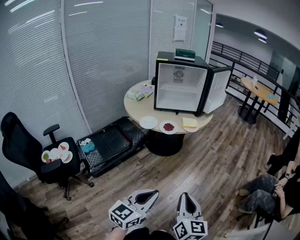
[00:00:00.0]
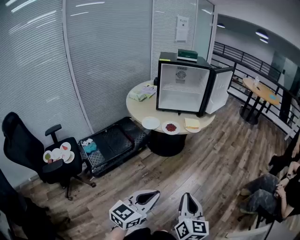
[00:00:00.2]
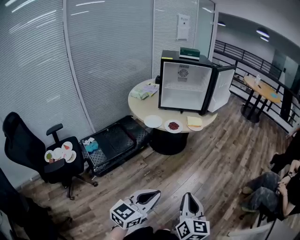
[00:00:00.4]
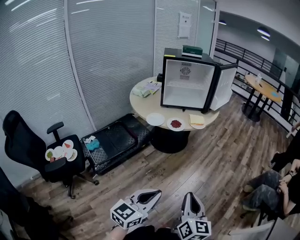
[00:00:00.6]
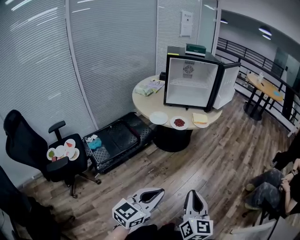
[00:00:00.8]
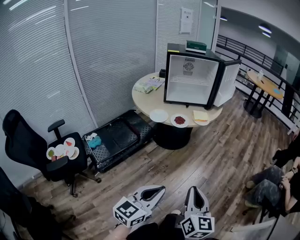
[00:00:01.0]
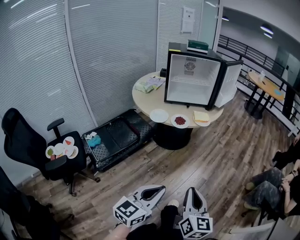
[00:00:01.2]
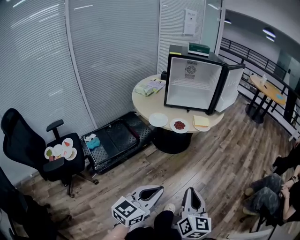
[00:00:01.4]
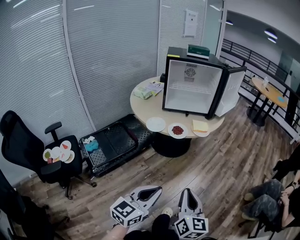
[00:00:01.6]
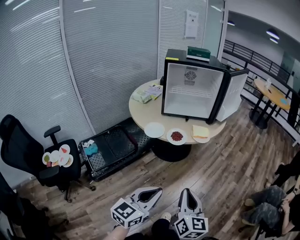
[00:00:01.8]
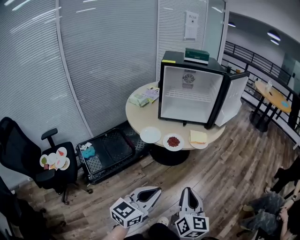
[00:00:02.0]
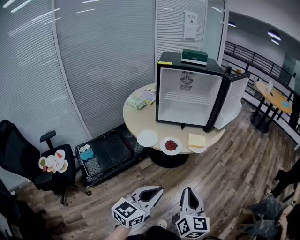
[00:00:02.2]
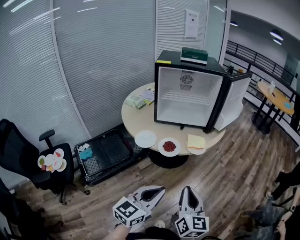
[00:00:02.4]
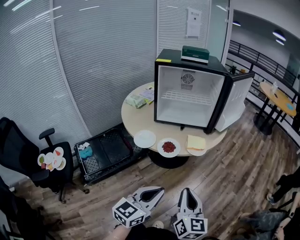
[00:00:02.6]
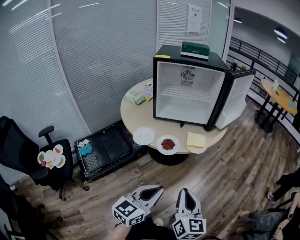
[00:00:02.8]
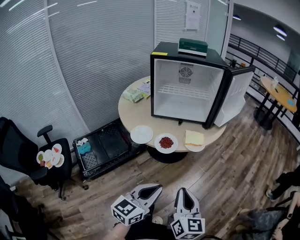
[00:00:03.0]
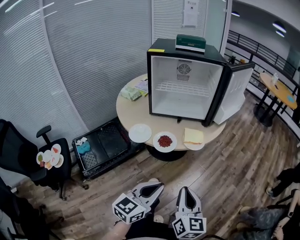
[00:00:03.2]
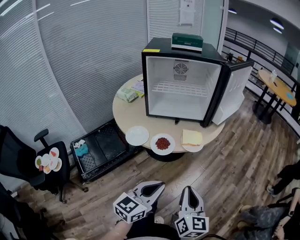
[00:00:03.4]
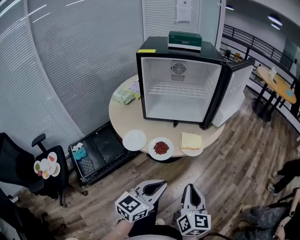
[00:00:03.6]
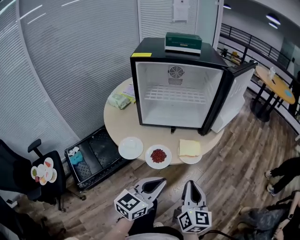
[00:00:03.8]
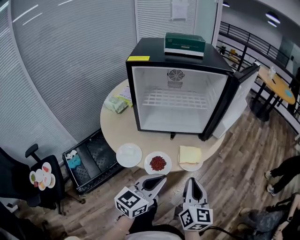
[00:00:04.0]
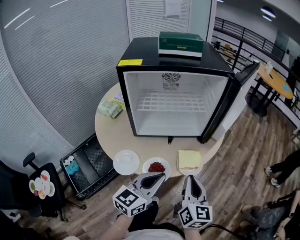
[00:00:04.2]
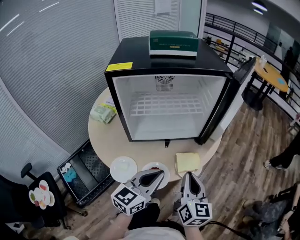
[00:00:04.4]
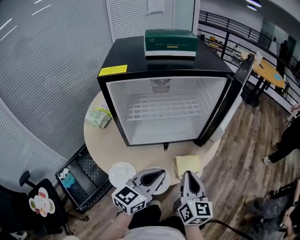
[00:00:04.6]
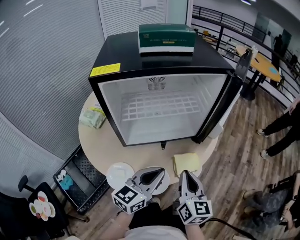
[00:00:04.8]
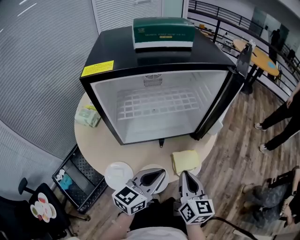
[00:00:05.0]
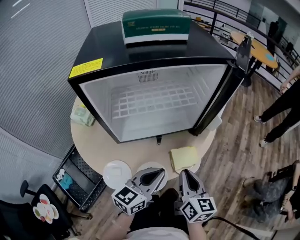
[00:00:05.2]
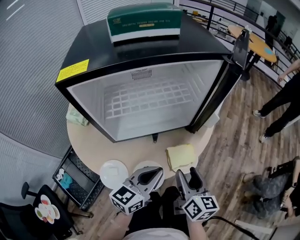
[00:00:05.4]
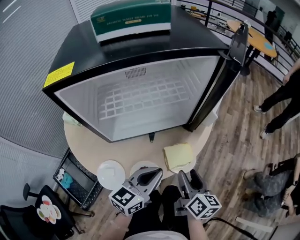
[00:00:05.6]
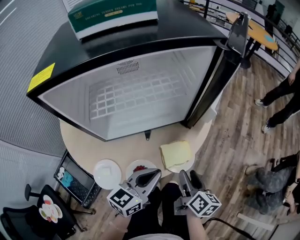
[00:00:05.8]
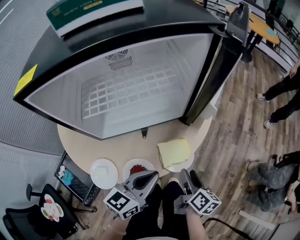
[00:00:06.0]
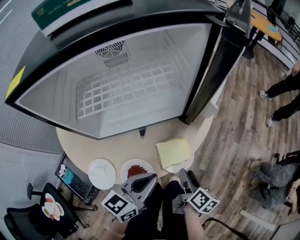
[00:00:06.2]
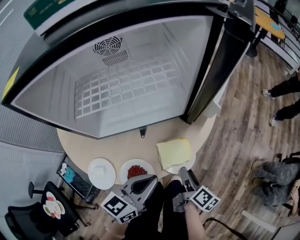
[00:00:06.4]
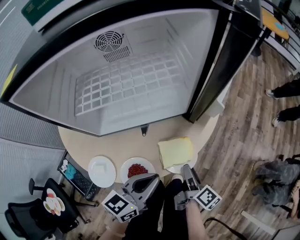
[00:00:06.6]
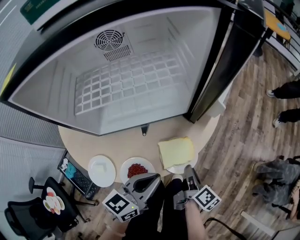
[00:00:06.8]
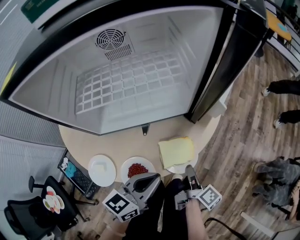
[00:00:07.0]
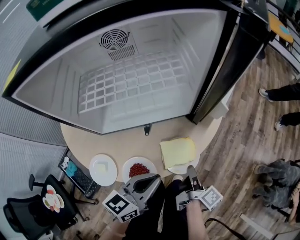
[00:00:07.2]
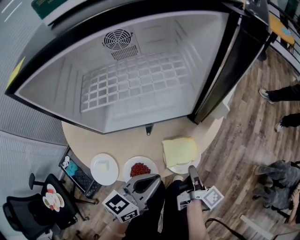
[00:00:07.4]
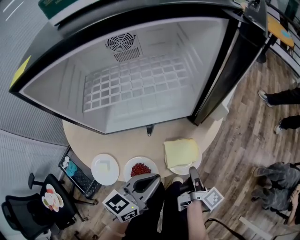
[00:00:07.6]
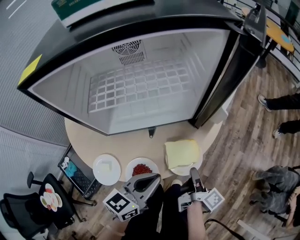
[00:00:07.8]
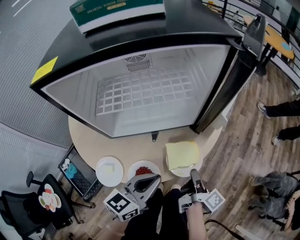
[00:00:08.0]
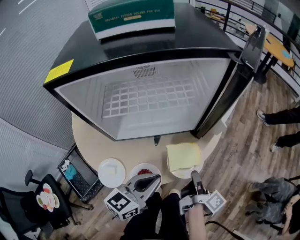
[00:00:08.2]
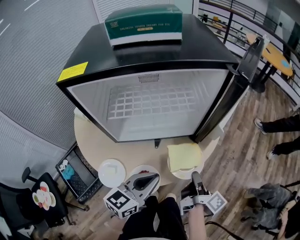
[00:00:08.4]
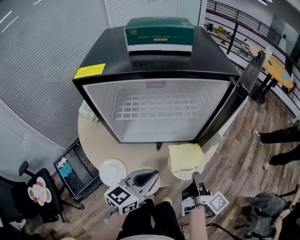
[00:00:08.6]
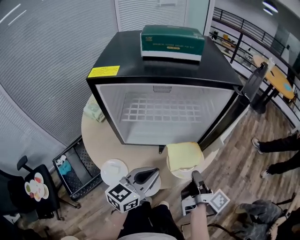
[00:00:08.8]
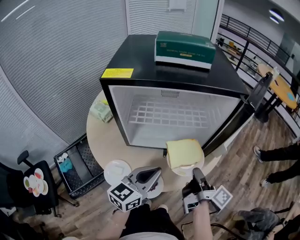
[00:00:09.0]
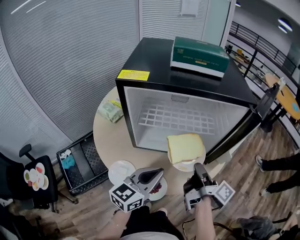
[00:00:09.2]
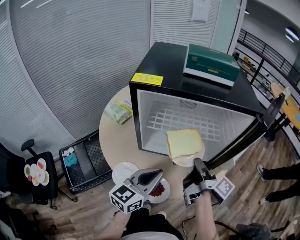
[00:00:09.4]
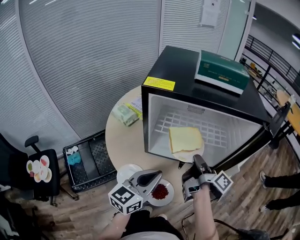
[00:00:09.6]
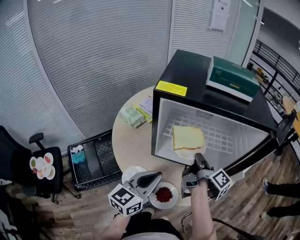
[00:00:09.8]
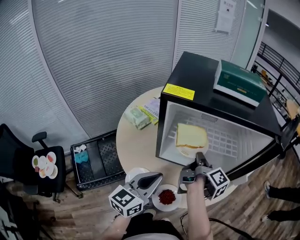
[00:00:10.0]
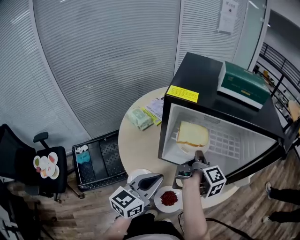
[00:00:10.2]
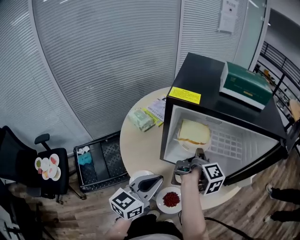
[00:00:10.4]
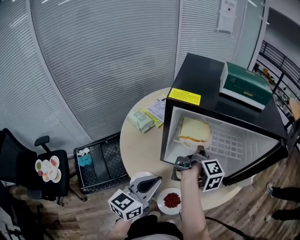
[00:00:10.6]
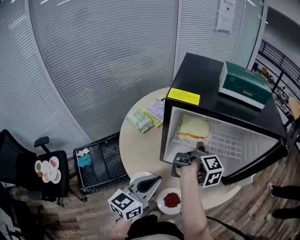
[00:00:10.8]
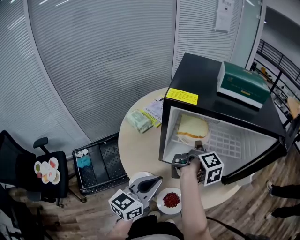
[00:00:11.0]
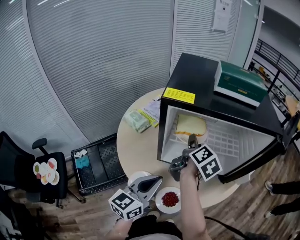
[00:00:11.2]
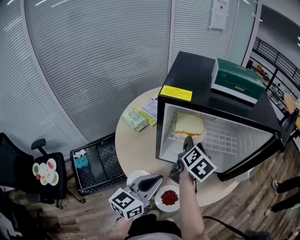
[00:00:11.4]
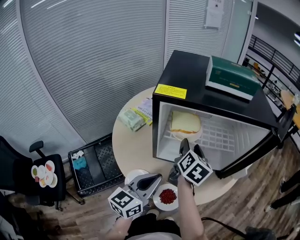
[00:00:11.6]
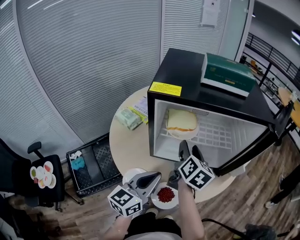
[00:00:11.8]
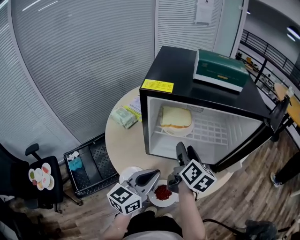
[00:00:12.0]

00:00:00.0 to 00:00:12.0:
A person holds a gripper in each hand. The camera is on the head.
00:00:00.0 to 00:00:01.6: The grippers both shift forward and to the left by roughly 10 cm.
00:00:01.6 to 00:00:03.0: Both grippers travel together forward, roughly 20 cm.
00:00:03.0 to 00:00:04.4: The grippers both shift forward by approximately 30 cm.
00:00:04.4 to 00:00:06.0: The right gripper goes about 20 cm downward and to the right, rotates approximately 40 degrees, and opens, while the left gripper heads downward and forward, covering some 10 cm.
00:00:06.0 to 00:00:07.6: The right gripper swivels roughly 40 degrees, and closes its fingers.
00:00:07.6 to 00:00:09.0: The right gripper moves upward, some 20 cm. The left gripper goes roughly 15 cm upward and to the left.
00:00:09.0 to 00:00:10.4: The right gripper travels to the left and forward by some 25 cm, while the left gripper goes roughly 15 cm to the left.
00:00:10.4 to 00:00:12.0: The right gripper rotates around the line of its fingers by approximately 50 degrees, counterclockwise from behind, and opens up.

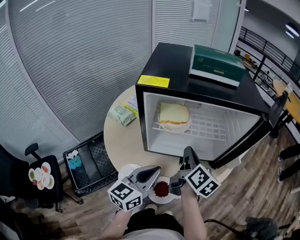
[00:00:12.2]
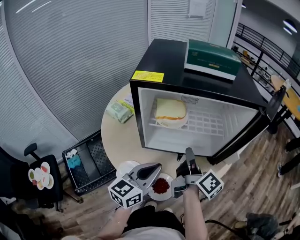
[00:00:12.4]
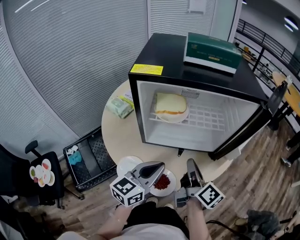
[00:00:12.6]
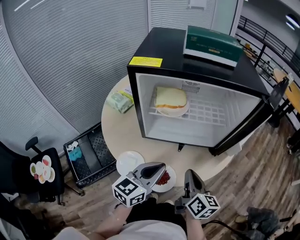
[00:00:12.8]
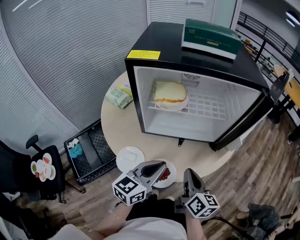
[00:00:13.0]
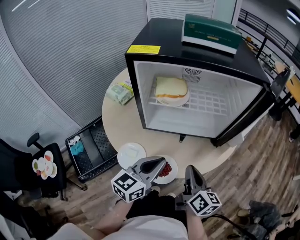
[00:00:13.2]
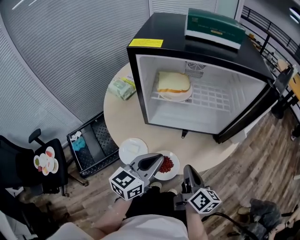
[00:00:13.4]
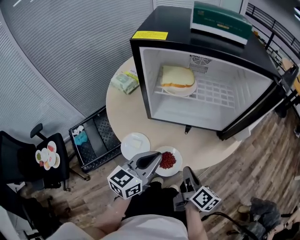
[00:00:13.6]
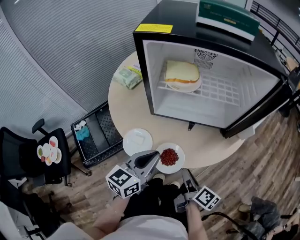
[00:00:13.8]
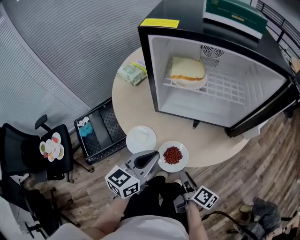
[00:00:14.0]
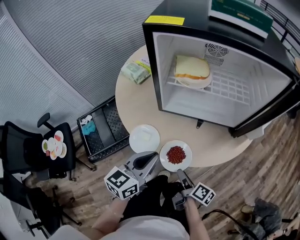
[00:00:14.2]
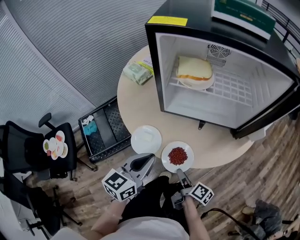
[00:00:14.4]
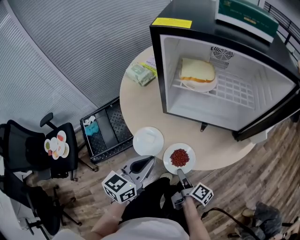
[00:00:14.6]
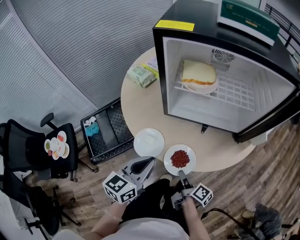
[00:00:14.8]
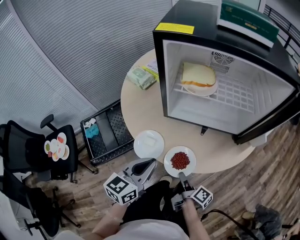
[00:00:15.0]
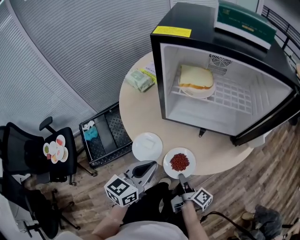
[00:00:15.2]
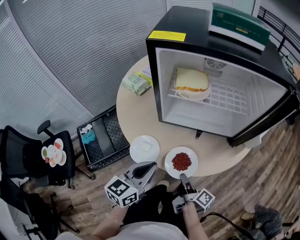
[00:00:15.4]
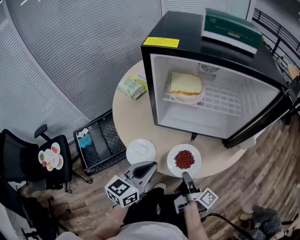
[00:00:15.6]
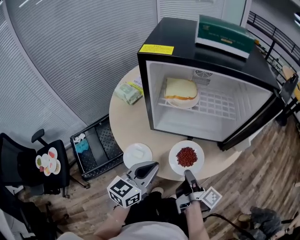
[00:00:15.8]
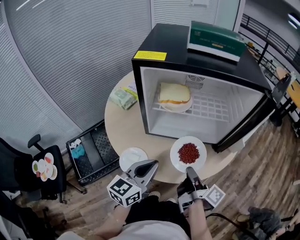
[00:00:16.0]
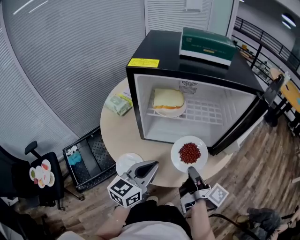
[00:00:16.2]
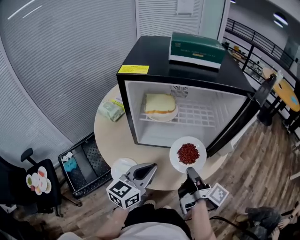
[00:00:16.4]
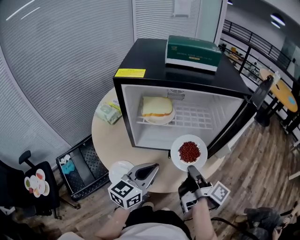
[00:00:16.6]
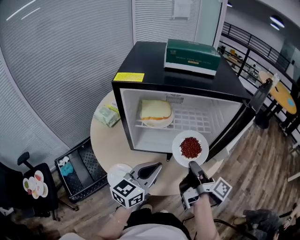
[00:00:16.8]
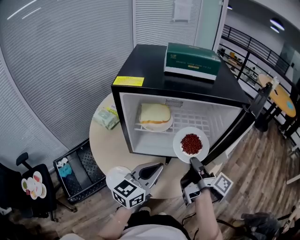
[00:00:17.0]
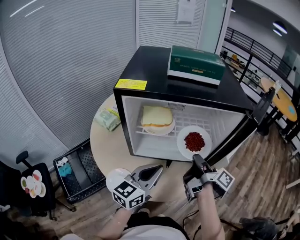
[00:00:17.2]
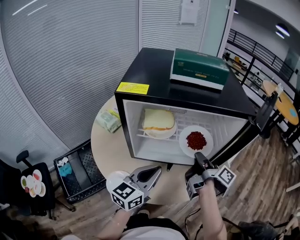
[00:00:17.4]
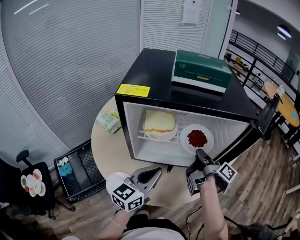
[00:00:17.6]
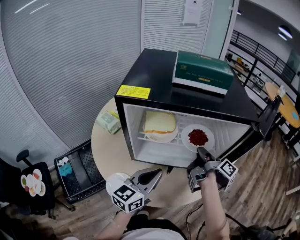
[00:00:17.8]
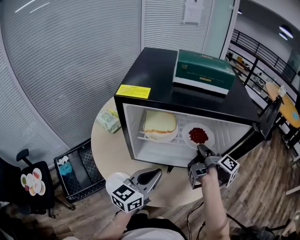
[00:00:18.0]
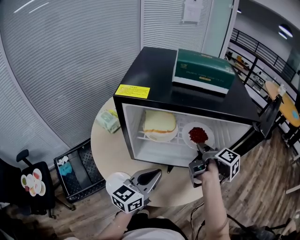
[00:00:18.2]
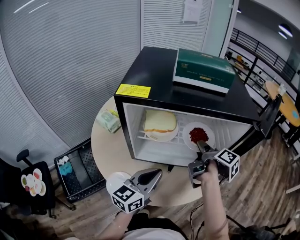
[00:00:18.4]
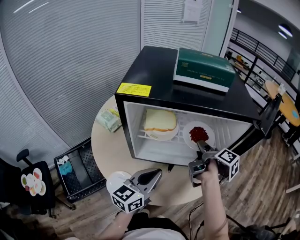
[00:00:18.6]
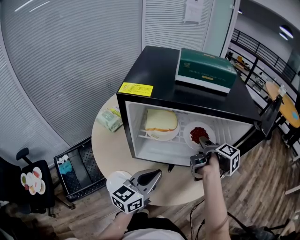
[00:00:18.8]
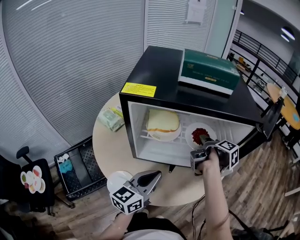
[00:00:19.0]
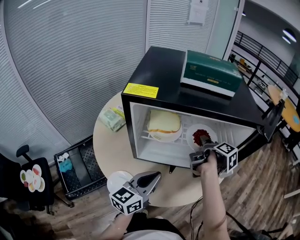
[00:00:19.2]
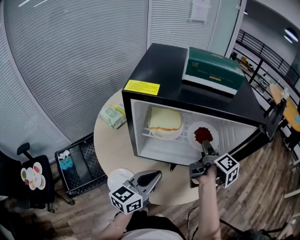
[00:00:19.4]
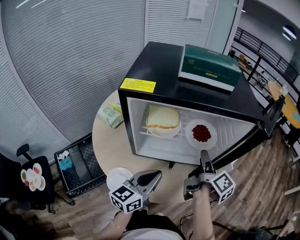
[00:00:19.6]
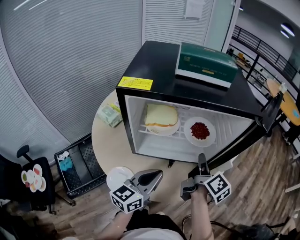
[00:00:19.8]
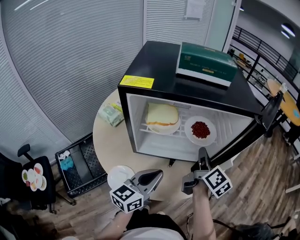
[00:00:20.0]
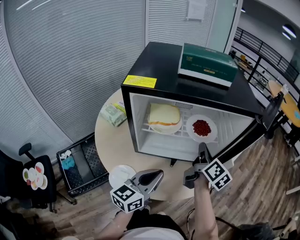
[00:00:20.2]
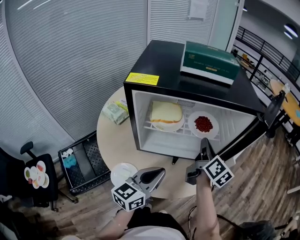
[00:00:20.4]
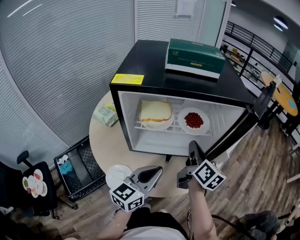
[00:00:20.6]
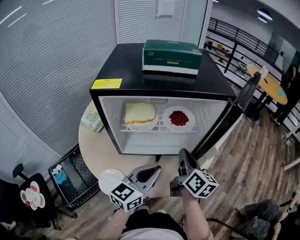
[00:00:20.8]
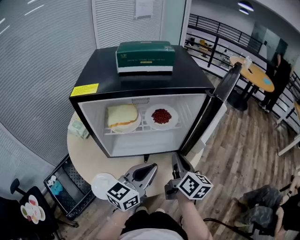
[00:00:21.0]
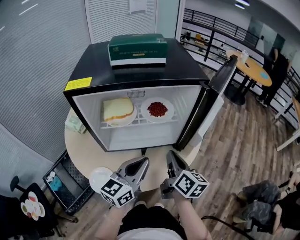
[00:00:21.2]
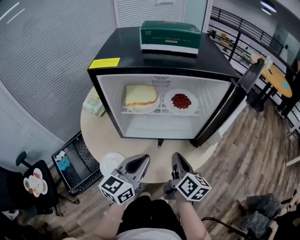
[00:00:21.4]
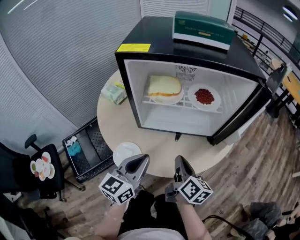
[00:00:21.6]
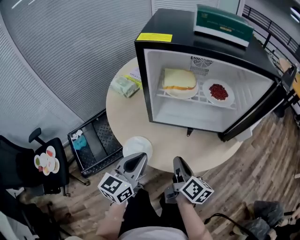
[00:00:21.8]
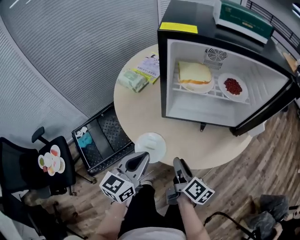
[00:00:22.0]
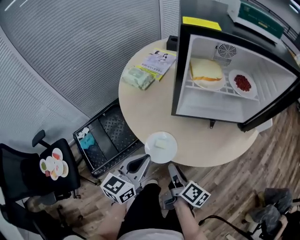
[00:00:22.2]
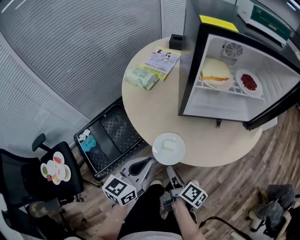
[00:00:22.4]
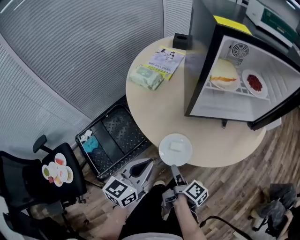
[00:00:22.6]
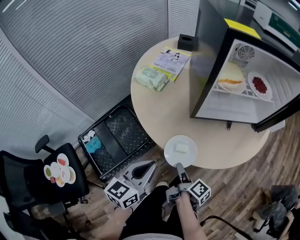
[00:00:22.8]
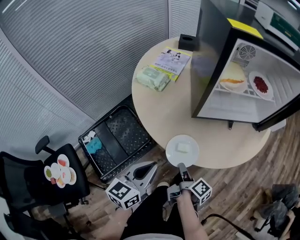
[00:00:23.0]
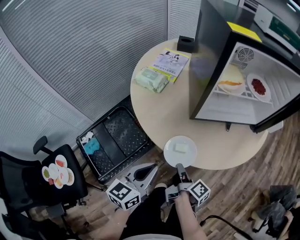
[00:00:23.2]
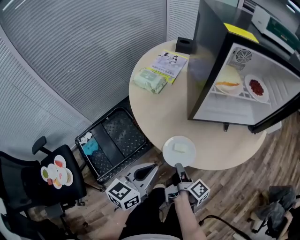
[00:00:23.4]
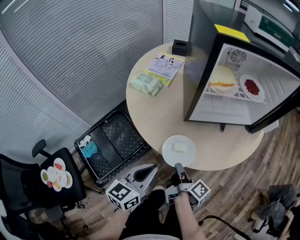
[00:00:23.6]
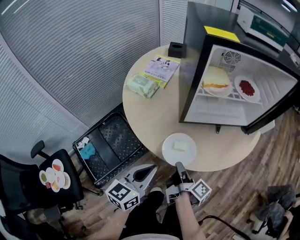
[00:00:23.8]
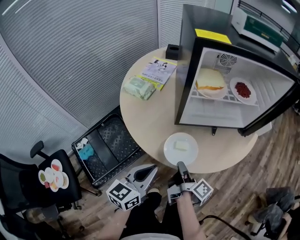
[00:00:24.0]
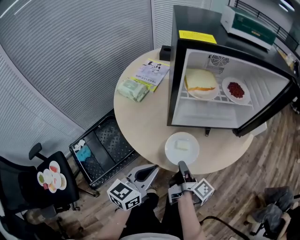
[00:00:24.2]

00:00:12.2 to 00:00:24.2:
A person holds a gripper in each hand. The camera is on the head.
00:00:12.2 to 00:00:13.8: The right gripper goes roughly 25 cm backward and downward, turns by some 30 degrees, and opens; the left gripper goes roughly 10 cm downward and backward.
00:00:13.8 to 00:00:15.2: The right gripper is displaced downward and to the left by about 10 cm, and closes its fingers. The left gripper ends up about 5 cm from where it was.
00:00:15.2 to 00:00:16.6: The right gripper shifts about 25 cm upward, forward and to the right, while the left gripper moves to the right, forward and upward, about 15 cm.
00:00:16.6 to 00:00:18.2: The left gripper goes about 5 cm forward. Meanwhile the right gripper is displaced forward by some 15 cm, and swivels roughly 20 degrees.
00:00:18.2 to 00:00:19.8: The right gripper travels backward by about 5 cm, swivels about 30 degrees, and opens, then closes once more.
00:00:19.8 to 00:00:21.2: The right gripper is displaced backward by roughly 5 cm. Meanwhile the left gripper is displaced to the right by approximately 5 cm.
00:00:21.2 to 00:00:22.6: The right gripper goes approximately 40 cm to the left, downward and backward, rolls clockwise, seen from behind, by about 40 degrees, and opens up; the left gripper travels to the left by about 35 cm.
00:00:22.6 to 00:00:24.2: The left gripper goes approximately 10 cm to the right. Meanwhile the right gripper moves to the right, forward and upward, about 15 cm, and closes up.
